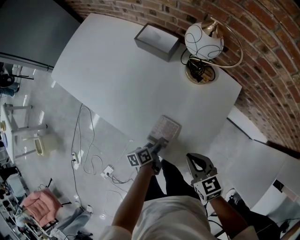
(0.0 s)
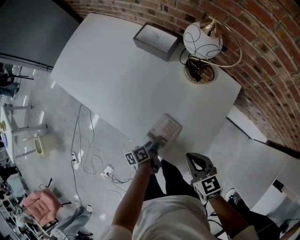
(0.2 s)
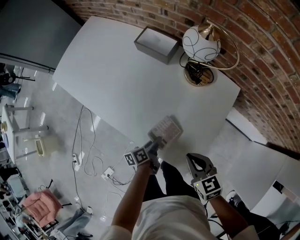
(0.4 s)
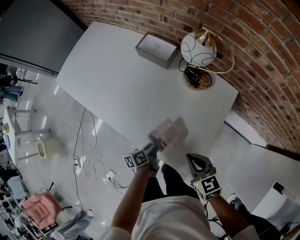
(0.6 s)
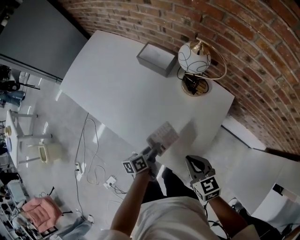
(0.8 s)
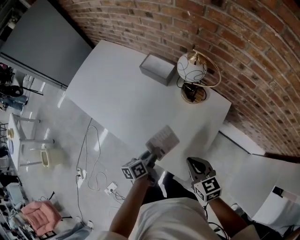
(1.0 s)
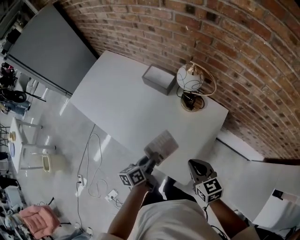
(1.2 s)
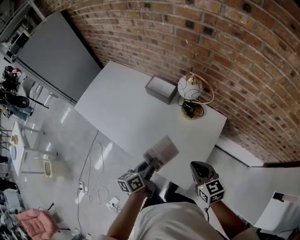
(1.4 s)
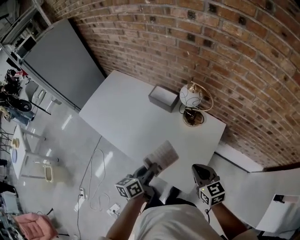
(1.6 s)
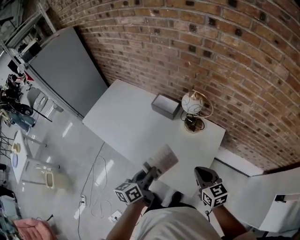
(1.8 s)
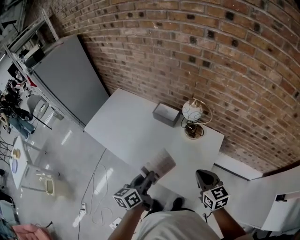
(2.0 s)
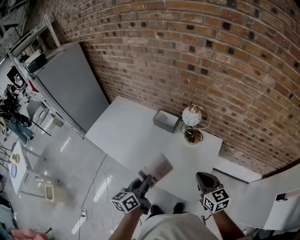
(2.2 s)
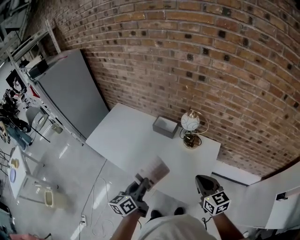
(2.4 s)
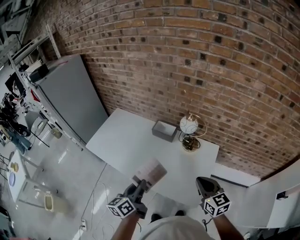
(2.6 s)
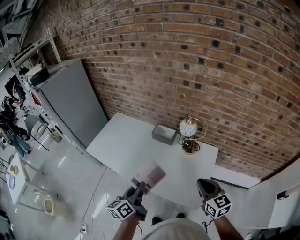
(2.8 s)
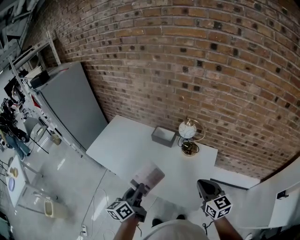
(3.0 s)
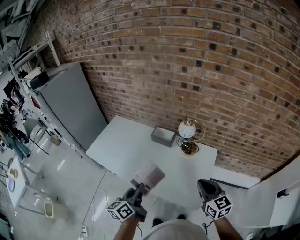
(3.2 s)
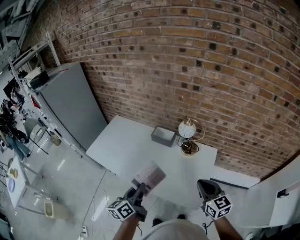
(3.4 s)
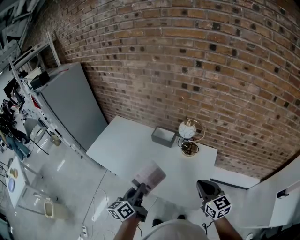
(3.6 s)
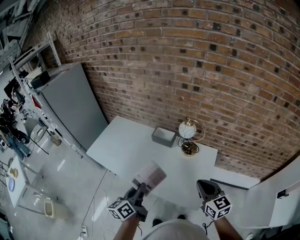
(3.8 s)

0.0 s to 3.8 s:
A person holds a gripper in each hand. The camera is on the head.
0.0 to 1.2 s: The left gripper goes approximately 20 cm upward, changes its angle by some 20 degrees, and closes. The right gripper shifts roughly 10 cm upward.
1.2 to 2.6 s: The left gripper goes some 25 cm upward and to the left, and swivels approximately 20 degrees. The right gripper goes about 20 cm upward.
2.6 to 3.8 s: The grippers stay close to where they were, moving slightly.

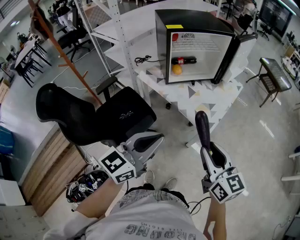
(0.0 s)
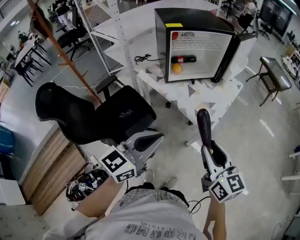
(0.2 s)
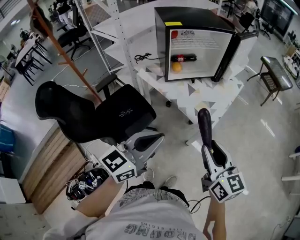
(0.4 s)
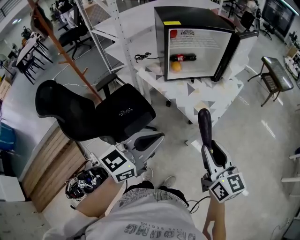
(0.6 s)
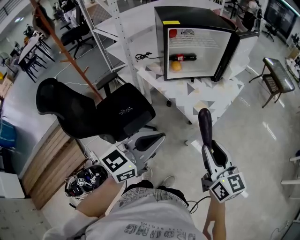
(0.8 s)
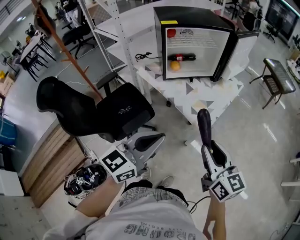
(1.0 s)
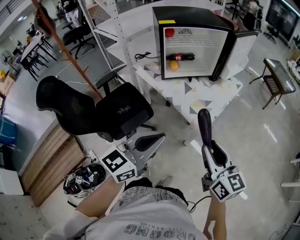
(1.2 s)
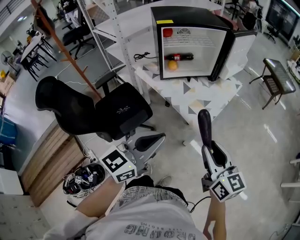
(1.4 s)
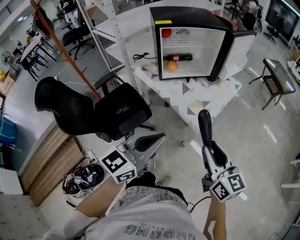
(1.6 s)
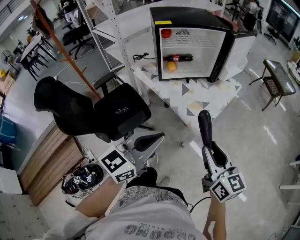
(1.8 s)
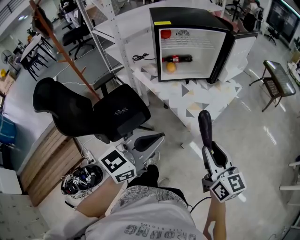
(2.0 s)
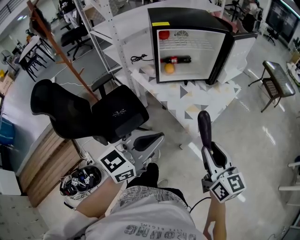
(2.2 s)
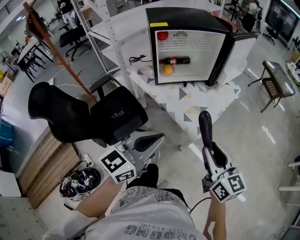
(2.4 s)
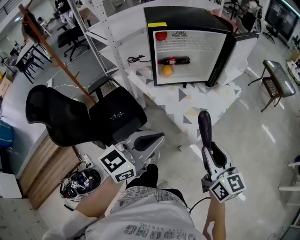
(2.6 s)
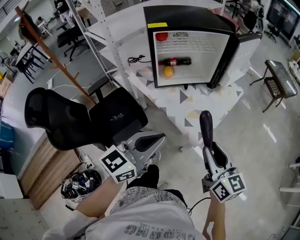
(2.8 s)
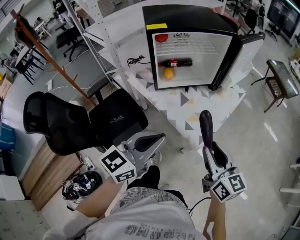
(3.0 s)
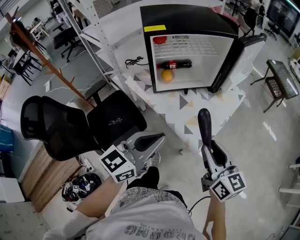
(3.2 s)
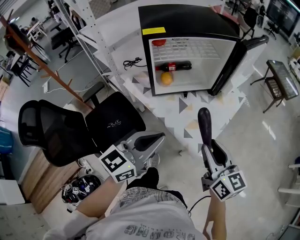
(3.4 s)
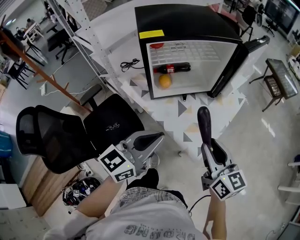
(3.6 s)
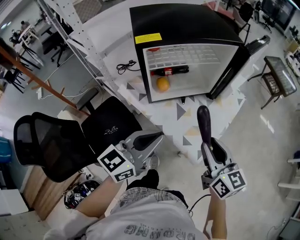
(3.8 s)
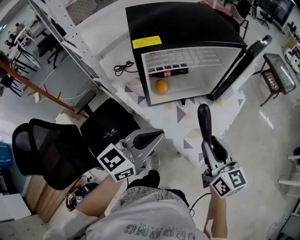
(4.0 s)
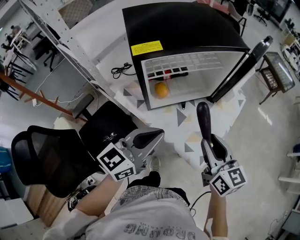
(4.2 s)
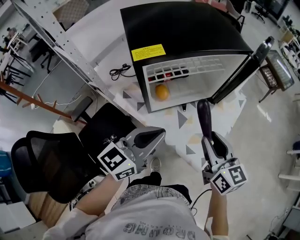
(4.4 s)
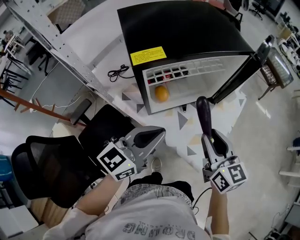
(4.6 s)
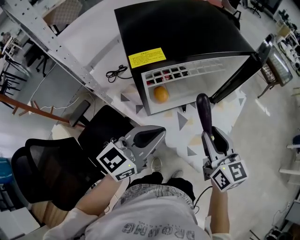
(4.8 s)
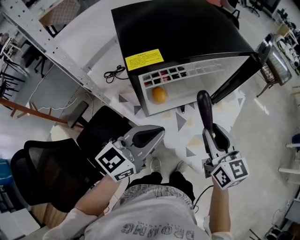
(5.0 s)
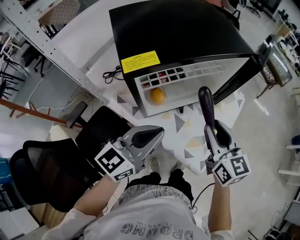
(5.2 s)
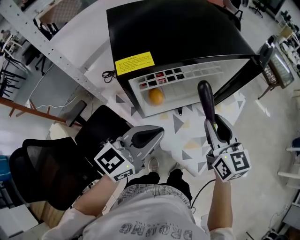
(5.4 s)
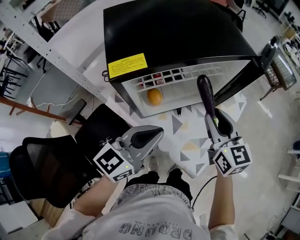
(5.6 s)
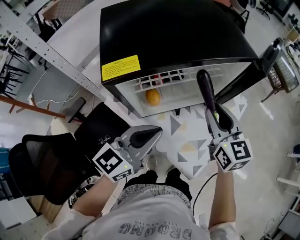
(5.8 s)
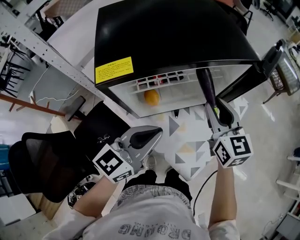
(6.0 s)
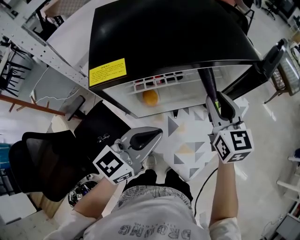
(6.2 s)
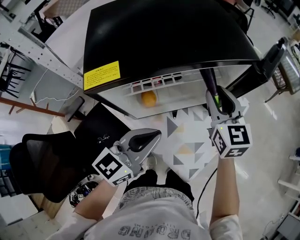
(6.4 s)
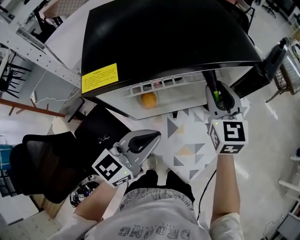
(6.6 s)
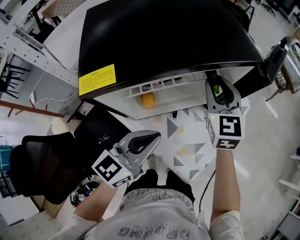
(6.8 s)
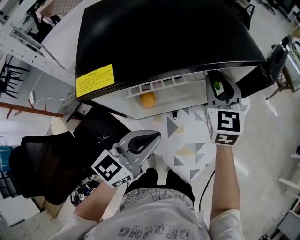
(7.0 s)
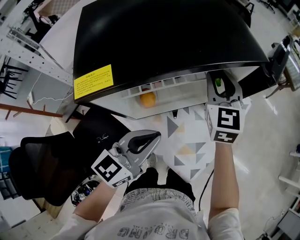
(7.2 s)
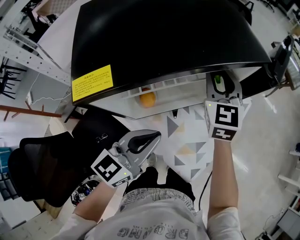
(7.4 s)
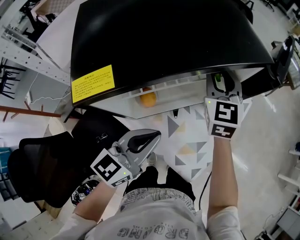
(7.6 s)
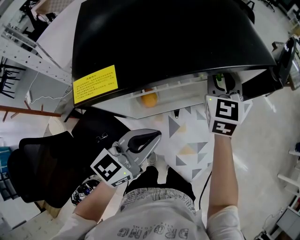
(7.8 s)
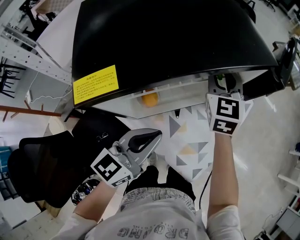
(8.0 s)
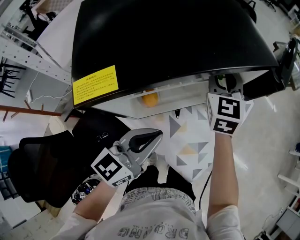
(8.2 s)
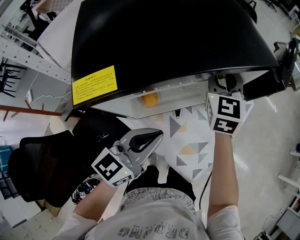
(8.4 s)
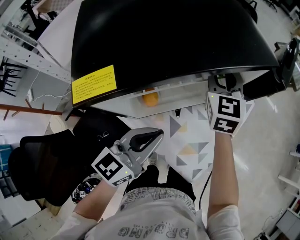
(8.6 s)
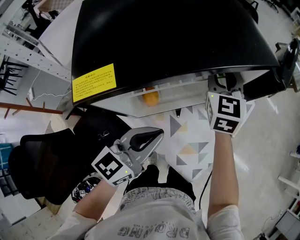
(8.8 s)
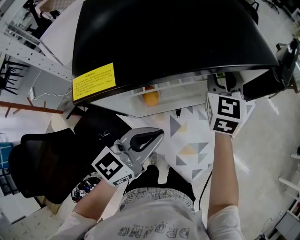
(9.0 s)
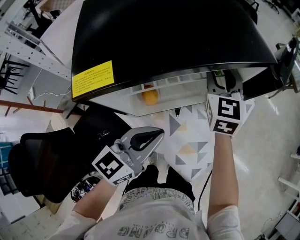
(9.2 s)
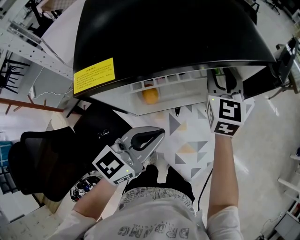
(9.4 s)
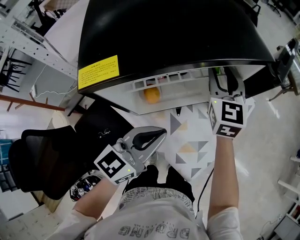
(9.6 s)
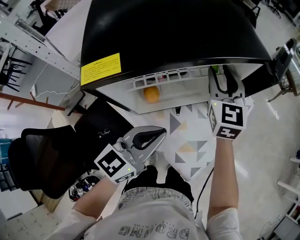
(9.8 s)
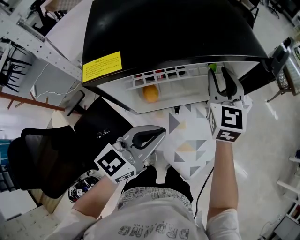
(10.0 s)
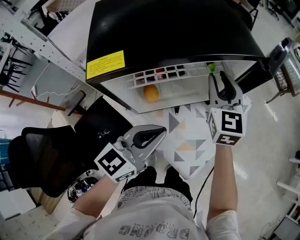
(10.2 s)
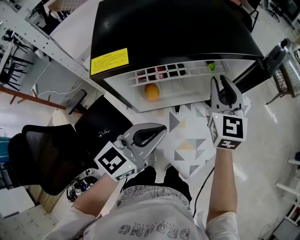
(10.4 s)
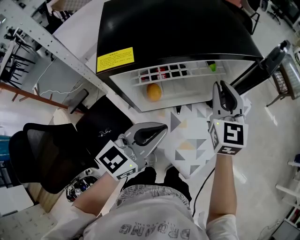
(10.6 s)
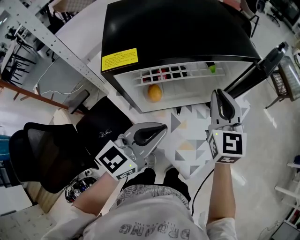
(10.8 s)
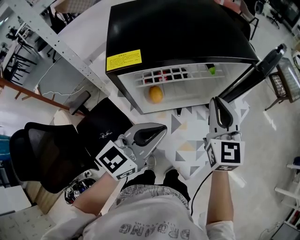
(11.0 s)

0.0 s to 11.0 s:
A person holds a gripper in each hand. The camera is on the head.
0.0 to 1.6 s: The two grippers go roughly 10 cm to the right.
1.6 to 3.2 s: The grippers both shift forward by some 15 cm.
3.2 to 4.8 s: The two grippers go approximately 20 cm forward and to the left.
4.8 to 6.2 s: The right gripper is displaced forward by about 20 cm. The left gripper travels forward and to the right by approximately 10 cm.
6.2 to 7.8 s: The right gripper travels forward by roughly 10 cm, and rotates about 20 degrees.
7.8 to 9.4 s: There are only small adjustments of the grippers.
9.4 to 11.0 s: The left gripper moves some 5 cm, while the right gripper goes roughly 15 cm backward, and closes its fingers.

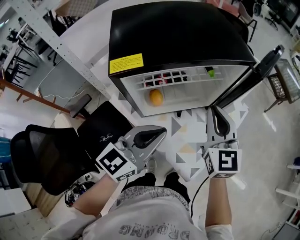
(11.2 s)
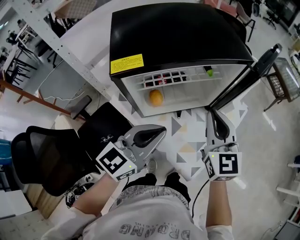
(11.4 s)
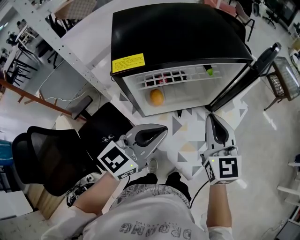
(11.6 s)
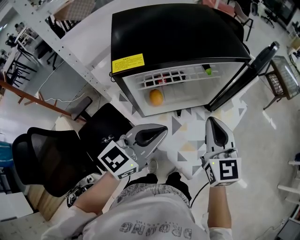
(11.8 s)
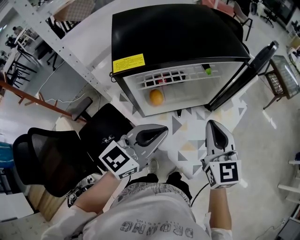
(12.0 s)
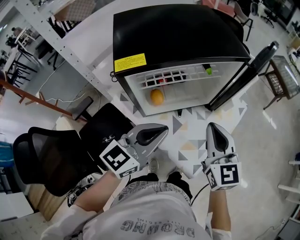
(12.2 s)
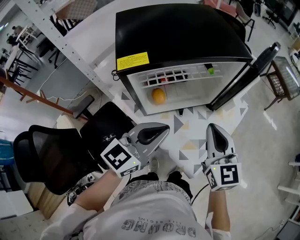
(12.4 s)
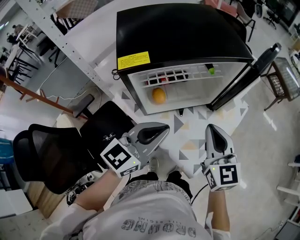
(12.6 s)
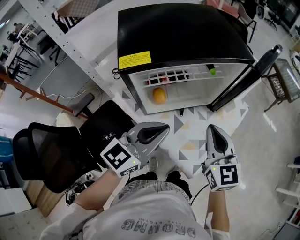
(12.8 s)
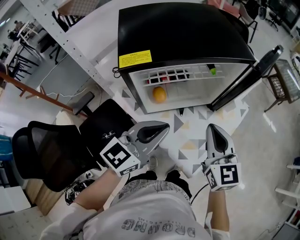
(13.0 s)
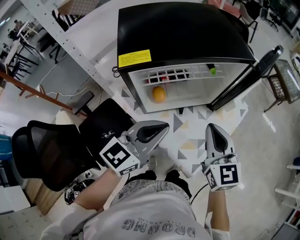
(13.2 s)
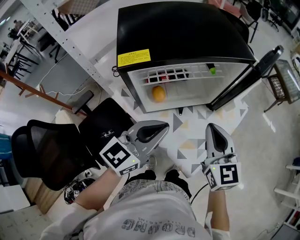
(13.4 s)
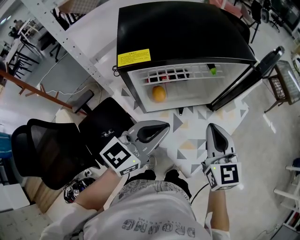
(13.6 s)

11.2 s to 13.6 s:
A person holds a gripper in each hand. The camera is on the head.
11.2 to 12.4 s: The right gripper goes some 5 cm backward.
12.4 to 13.6 s: Both grippers stay about where they are.

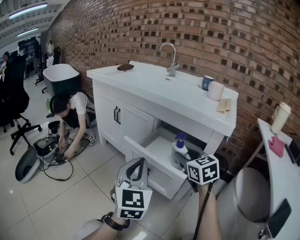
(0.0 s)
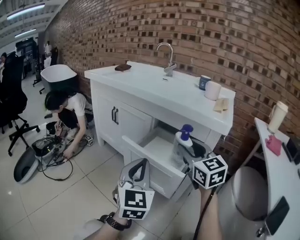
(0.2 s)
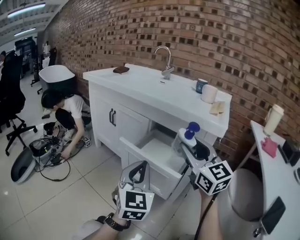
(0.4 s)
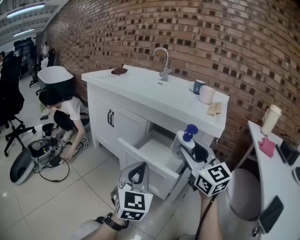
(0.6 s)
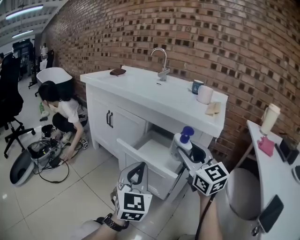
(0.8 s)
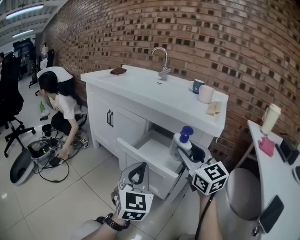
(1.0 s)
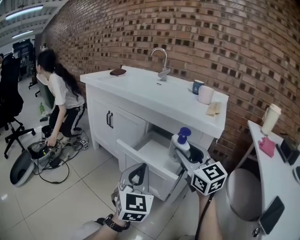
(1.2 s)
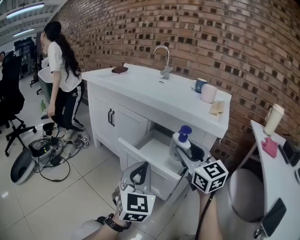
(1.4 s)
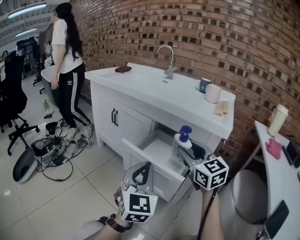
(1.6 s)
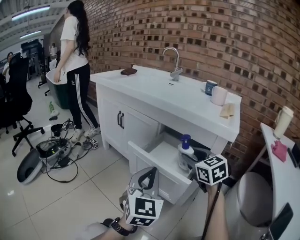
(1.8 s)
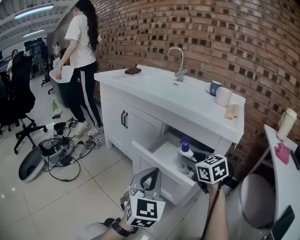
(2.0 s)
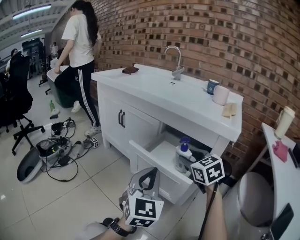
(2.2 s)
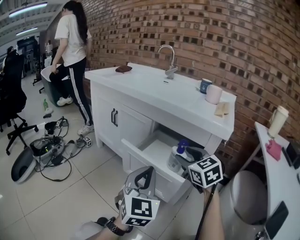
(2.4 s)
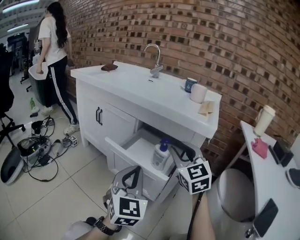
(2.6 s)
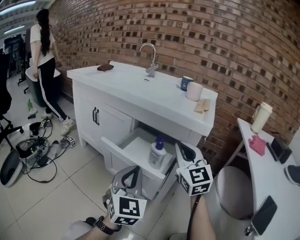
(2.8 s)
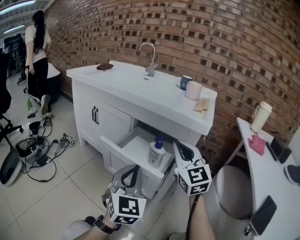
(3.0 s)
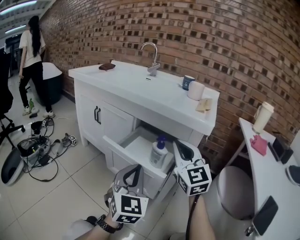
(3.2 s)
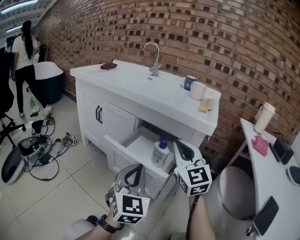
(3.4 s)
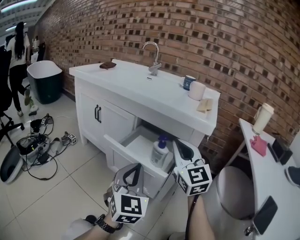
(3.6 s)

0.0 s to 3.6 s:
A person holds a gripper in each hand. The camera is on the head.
0.0 to 1.8 s: The right gripper travels upward and back again, about 10 cm each way.
1.8 to 3.6 s: The right gripper shifts about 10 cm upward and backward, swivels some 30 degrees, and closes.

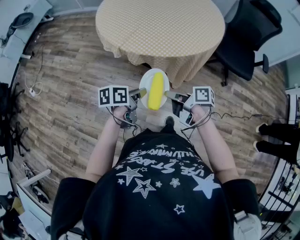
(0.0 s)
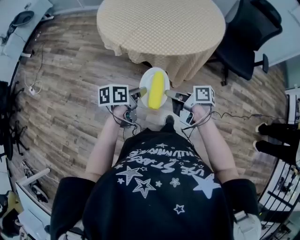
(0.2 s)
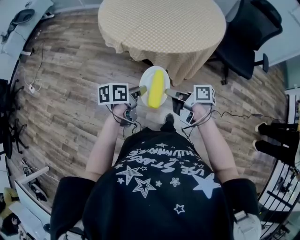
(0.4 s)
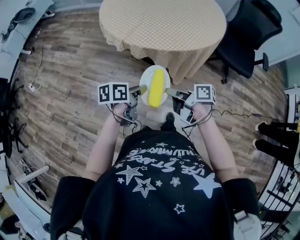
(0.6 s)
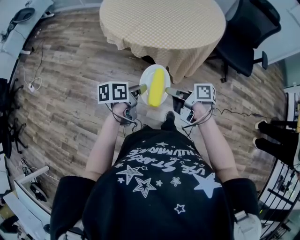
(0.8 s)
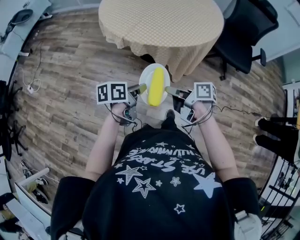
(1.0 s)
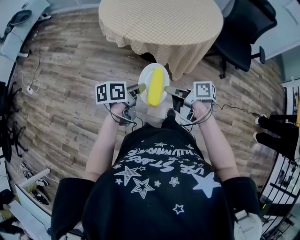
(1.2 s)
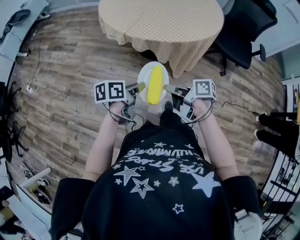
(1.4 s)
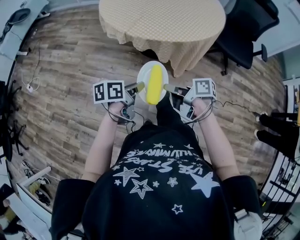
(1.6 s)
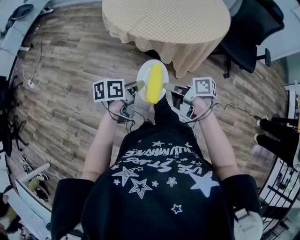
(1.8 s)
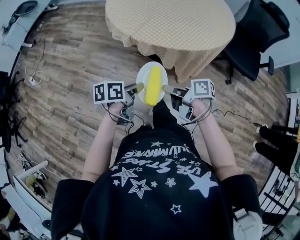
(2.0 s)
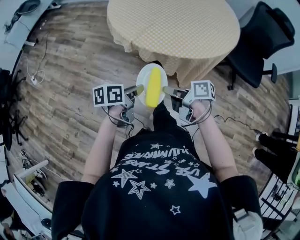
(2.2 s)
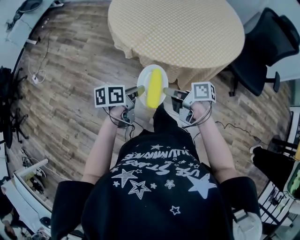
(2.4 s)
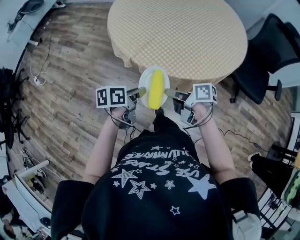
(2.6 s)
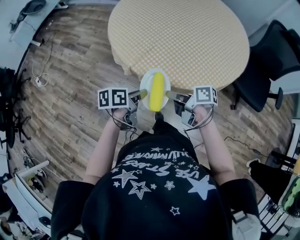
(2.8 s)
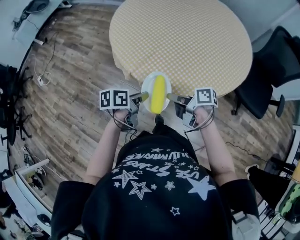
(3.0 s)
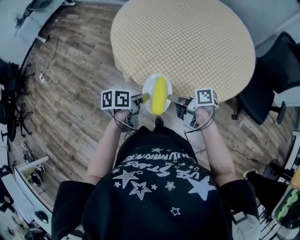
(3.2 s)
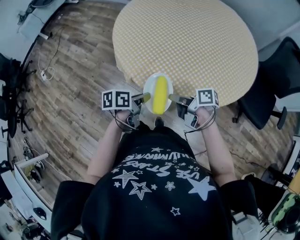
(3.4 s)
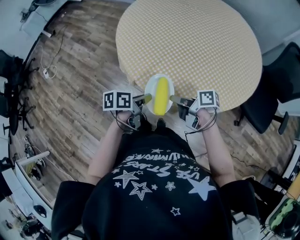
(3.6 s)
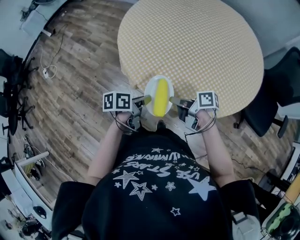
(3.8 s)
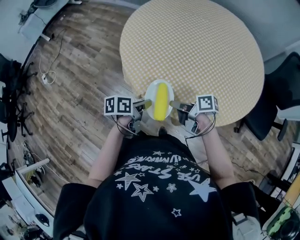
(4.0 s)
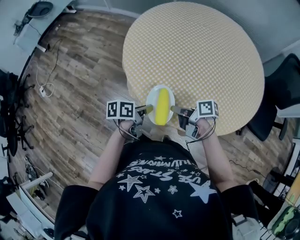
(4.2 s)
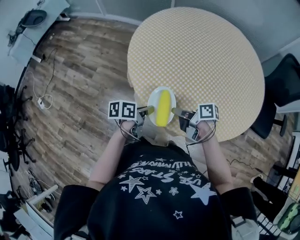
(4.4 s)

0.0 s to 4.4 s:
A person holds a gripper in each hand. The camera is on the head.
0.0 to 1.4 s: The left gripper changes place by approximately 10 cm.
1.4 to 3.0 s: The left gripper moves about 25 cm.
3.0 to 4.4 s: The left gripper changes place by roughly 25 cm.
